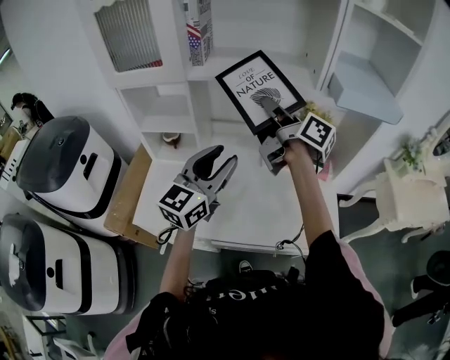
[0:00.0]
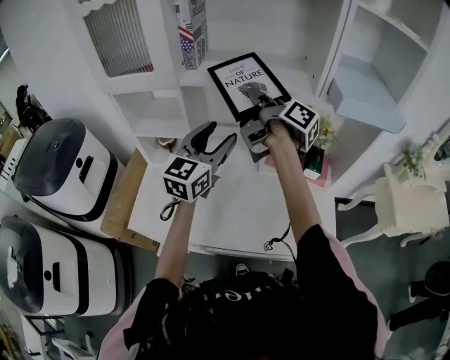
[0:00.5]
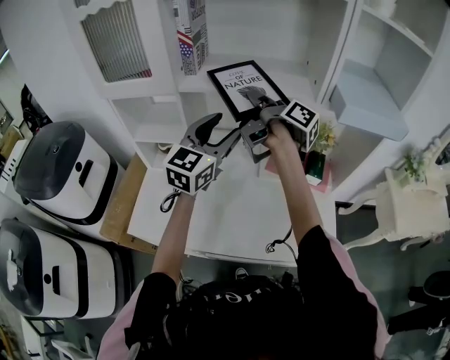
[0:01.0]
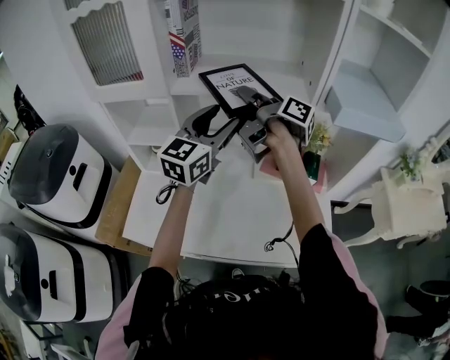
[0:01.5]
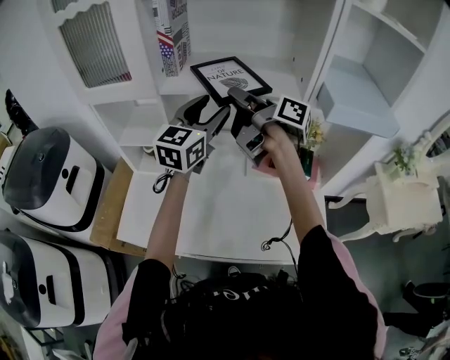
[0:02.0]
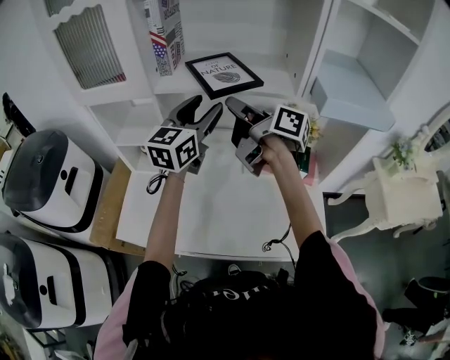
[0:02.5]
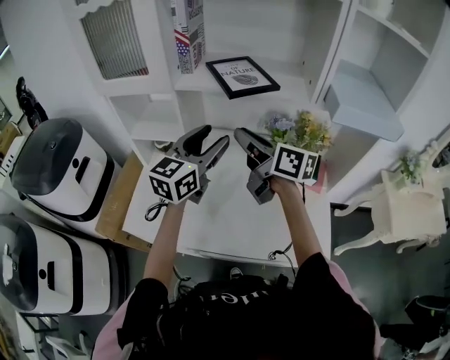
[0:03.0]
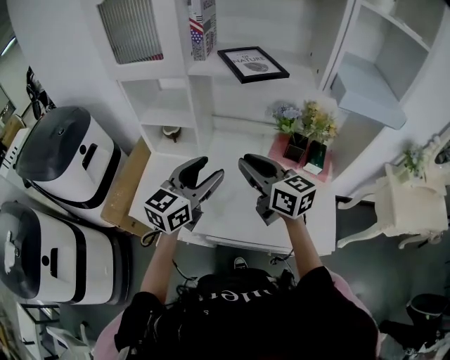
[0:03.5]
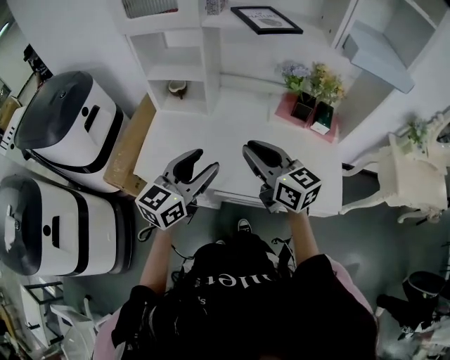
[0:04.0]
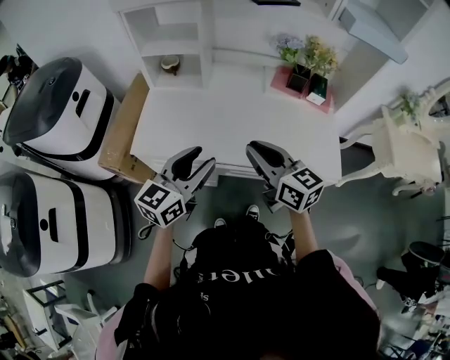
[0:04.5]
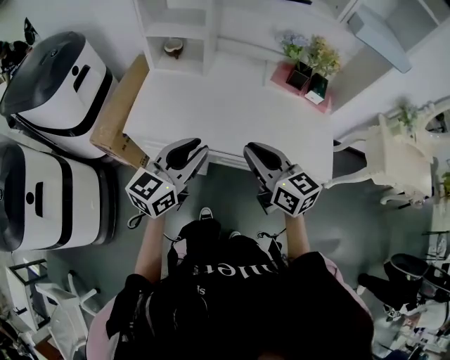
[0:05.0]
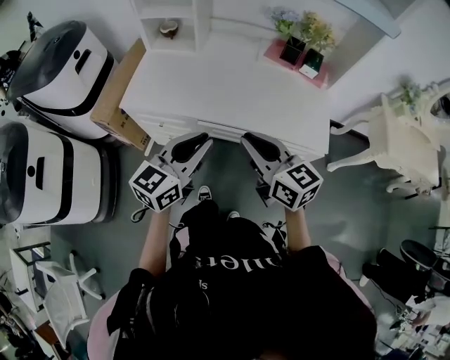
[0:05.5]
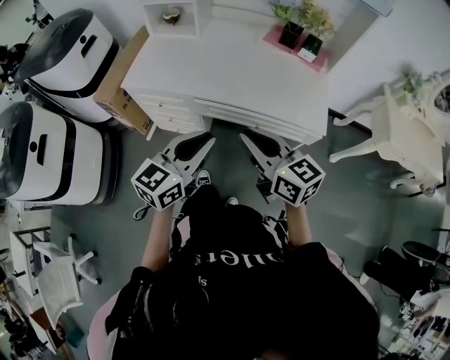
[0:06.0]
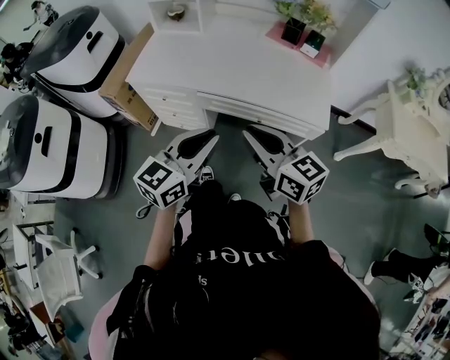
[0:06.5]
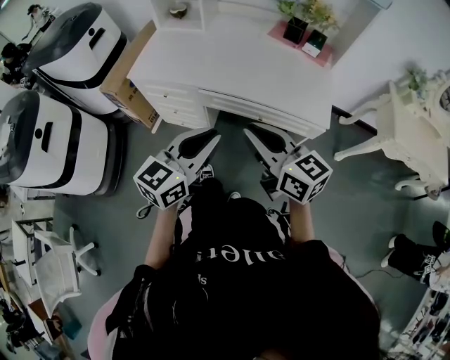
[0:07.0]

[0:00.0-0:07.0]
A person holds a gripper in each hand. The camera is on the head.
0:00.0 to 0:02.0: The left gripper shifts about 20 cm forward; the right gripper heads forward, covering some 10 cm.
0:02.0 to 0:03.5: Both grippers travel together backward and downward, about 25 cm. The right gripper rolls counterclockwise, seen from behind, by approximately 50 degrees.
0:03.5 to 0:05.0: The grippers both shift backward and downward by about 25 cm. The left gripper closes its fingers.
0:05.0 to 0:07.0: The two grippers go approximately 25 cm backward and to the right.

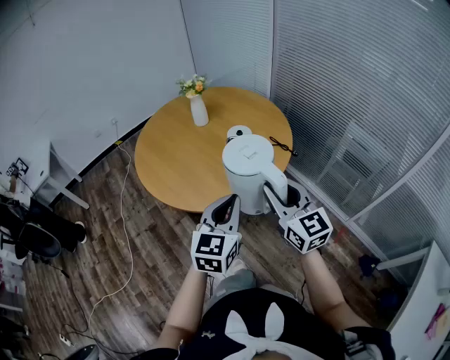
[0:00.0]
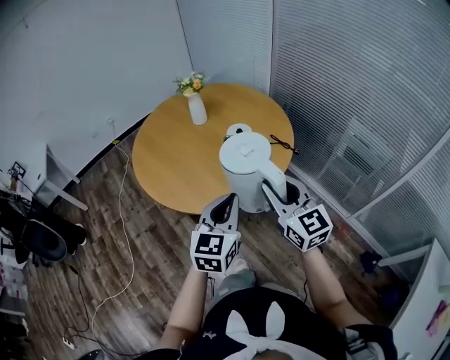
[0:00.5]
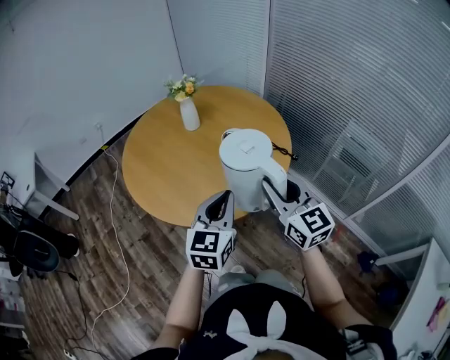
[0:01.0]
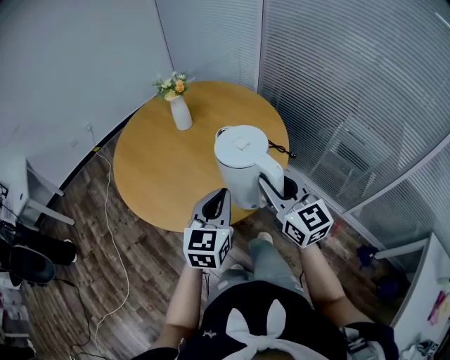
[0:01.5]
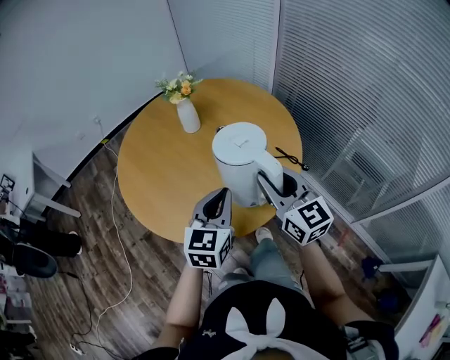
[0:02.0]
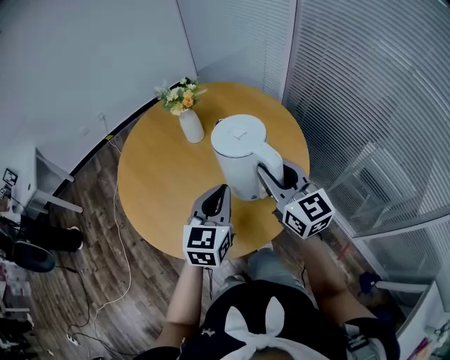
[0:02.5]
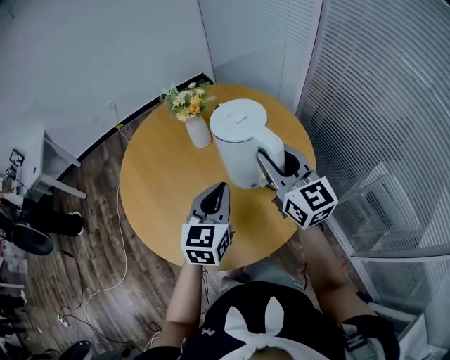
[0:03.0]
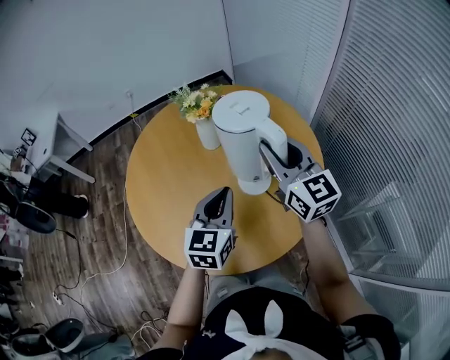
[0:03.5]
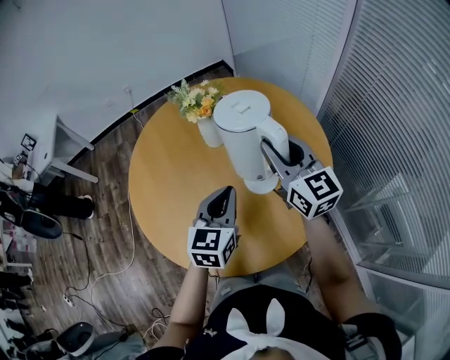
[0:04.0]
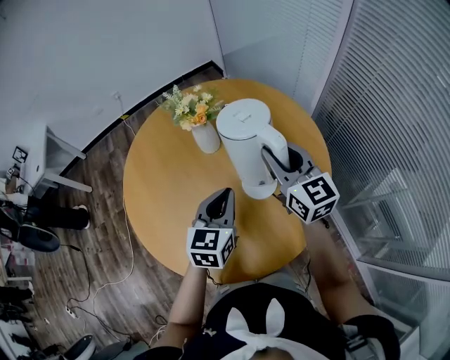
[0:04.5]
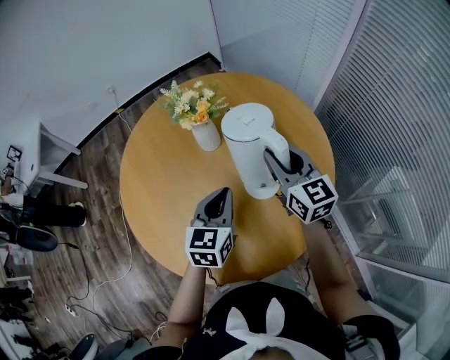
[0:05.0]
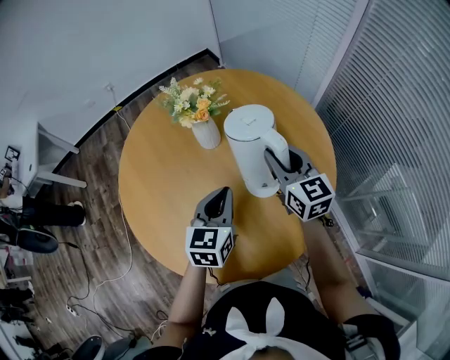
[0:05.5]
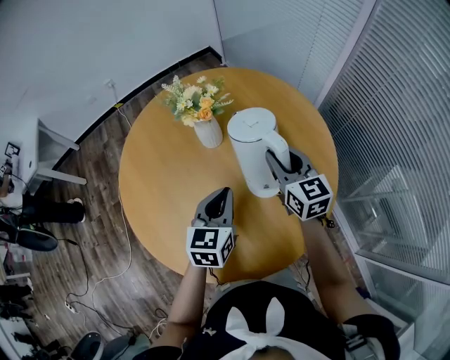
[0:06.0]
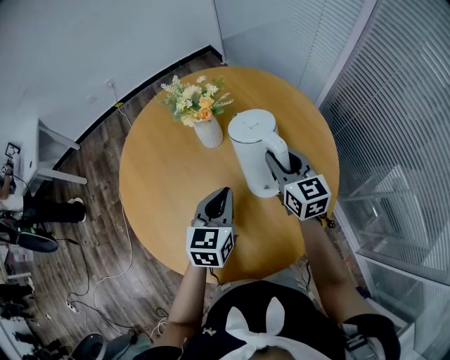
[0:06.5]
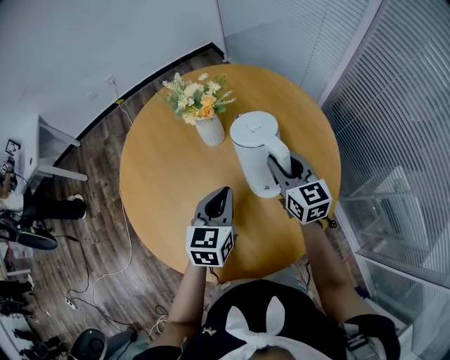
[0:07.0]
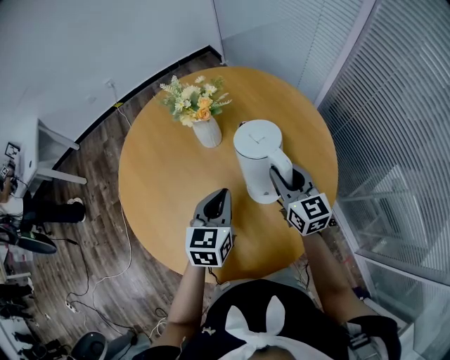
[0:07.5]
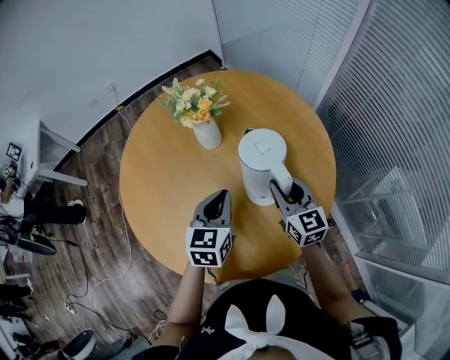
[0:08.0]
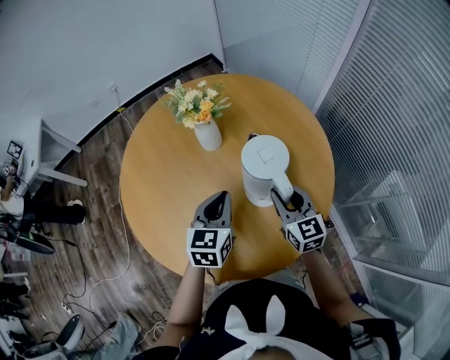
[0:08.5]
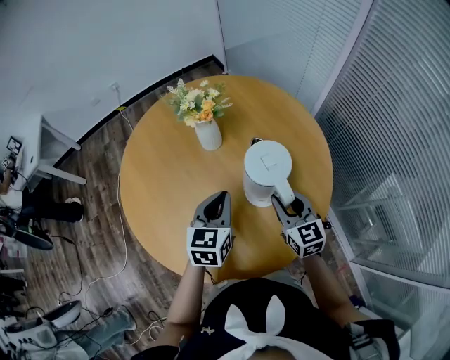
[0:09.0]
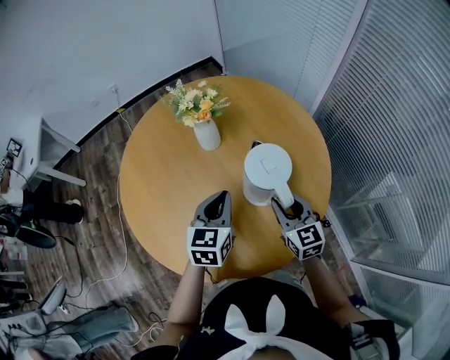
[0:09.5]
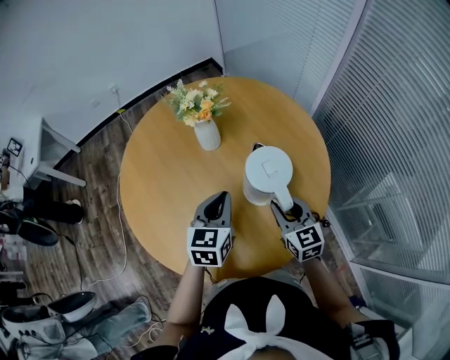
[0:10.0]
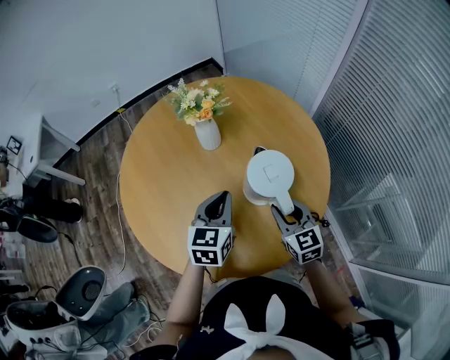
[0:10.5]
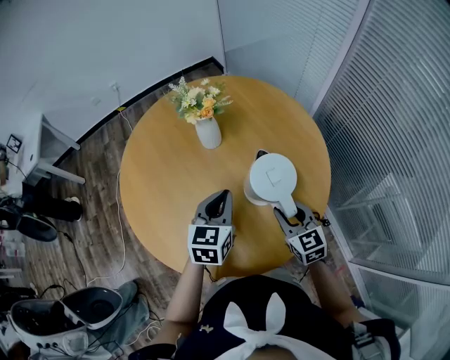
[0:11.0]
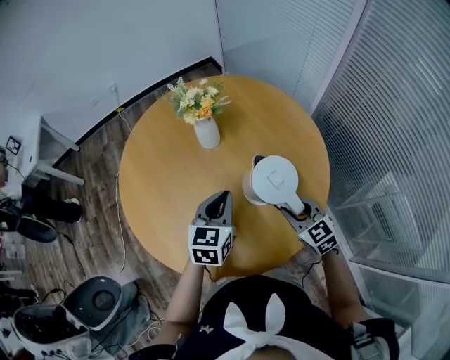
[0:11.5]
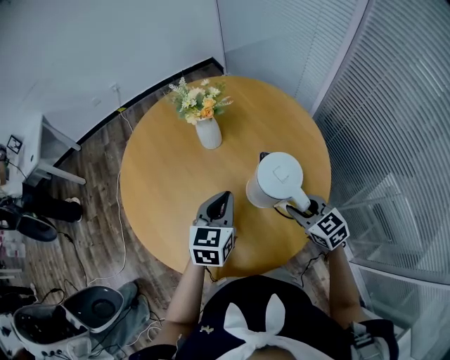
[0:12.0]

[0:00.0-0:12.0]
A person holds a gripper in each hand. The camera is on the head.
0:00.0 to 0:02.0: Both grippers move forward, some 20 cm.
0:02.0 to 0:04.0: Both grippers move forward, some 25 cm.
0:04.0 to 0:06.0: The left gripper goes roughly 5 cm downward and forward. Meanwhile the right gripper shifts approximately 10 cm downward.
0:06.0 to 0:08.0: The right gripper moves backward, approximately 5 cm.
0:08.0 to 0:10.0: The right gripper heads backward, covering approximately 5 cm.
0:10.0 to 0:12.0: The right gripper turns by some 20 degrees.

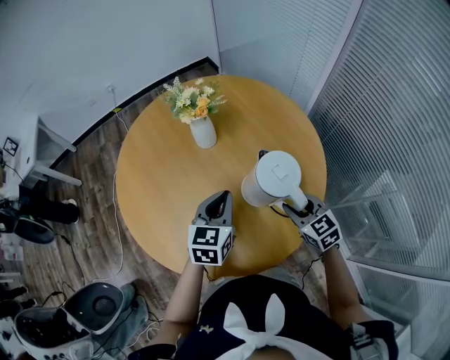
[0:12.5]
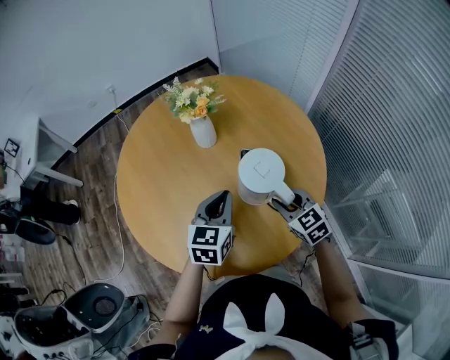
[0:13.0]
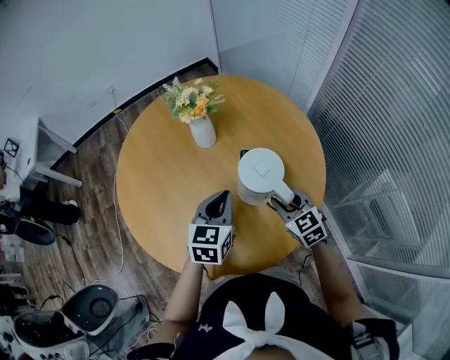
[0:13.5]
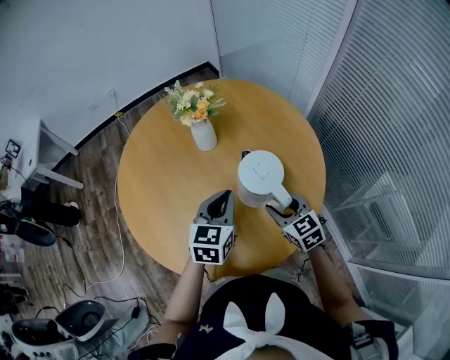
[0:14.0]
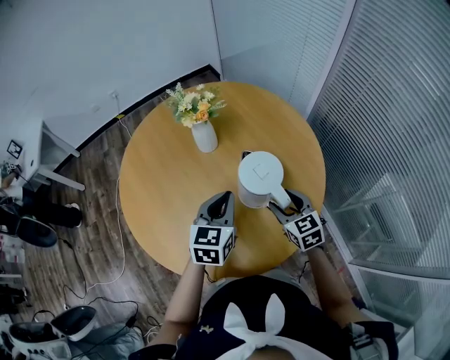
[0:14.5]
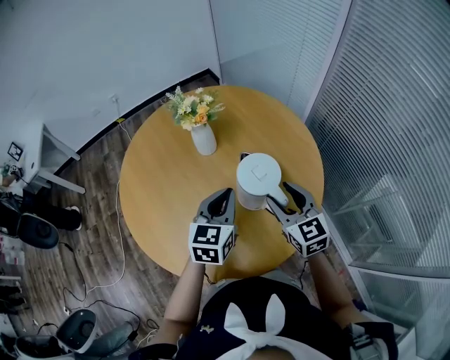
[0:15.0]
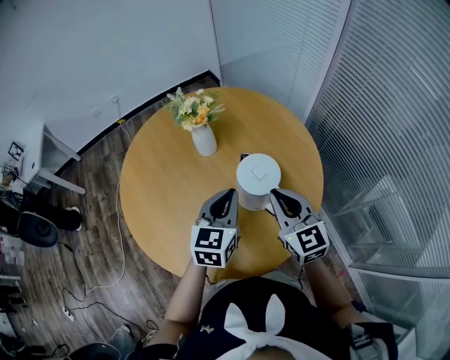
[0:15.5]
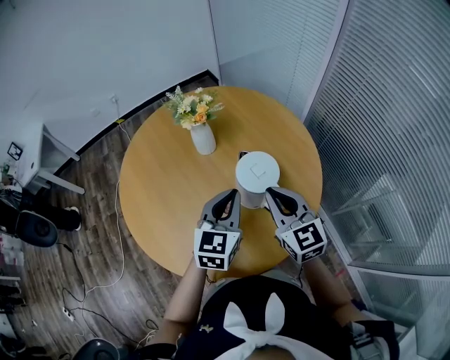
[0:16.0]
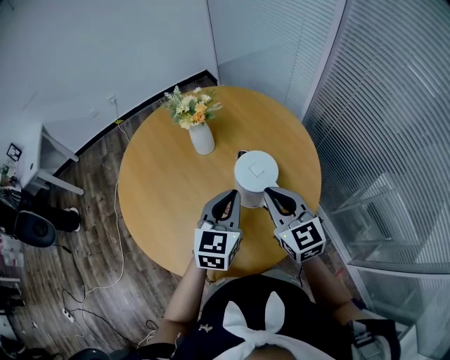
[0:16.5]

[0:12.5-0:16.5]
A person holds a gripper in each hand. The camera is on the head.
0:12.5 to 0:14.5: The right gripper opens.
0:14.5 to 0:16.5: The left gripper changes place by approximately 5 cm. Meanwhile the right gripper is displaced upward by some 15 cm, and closes.

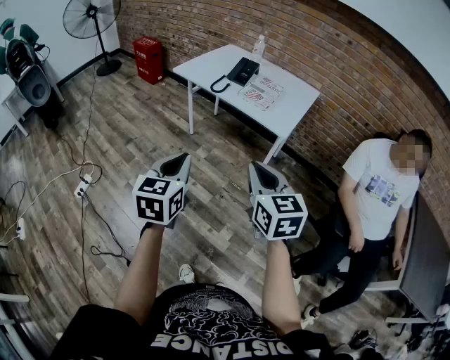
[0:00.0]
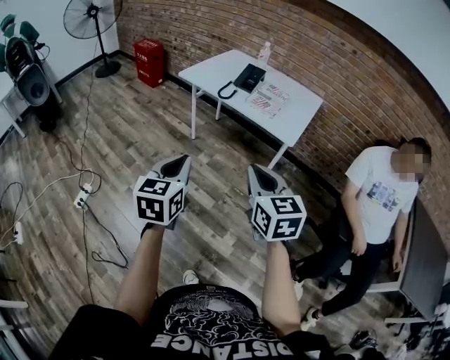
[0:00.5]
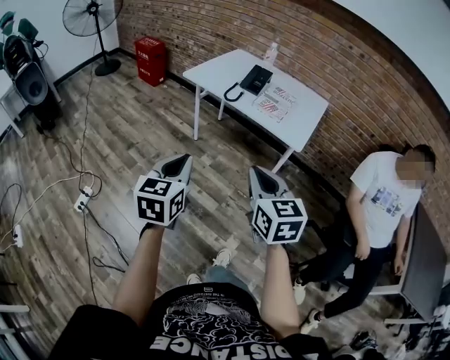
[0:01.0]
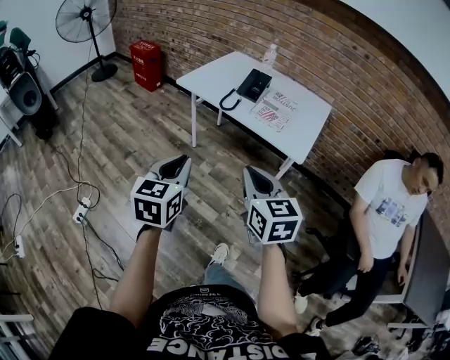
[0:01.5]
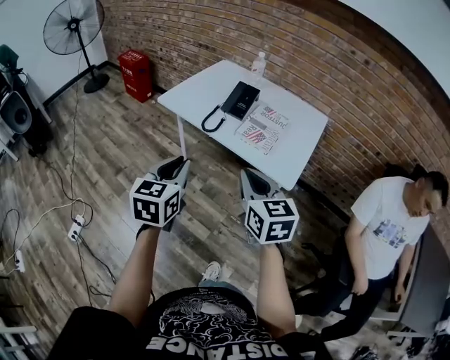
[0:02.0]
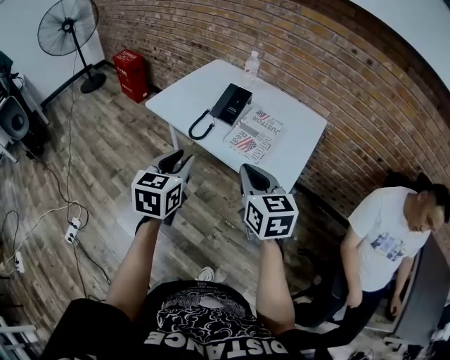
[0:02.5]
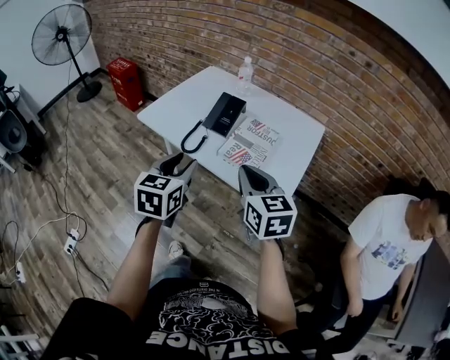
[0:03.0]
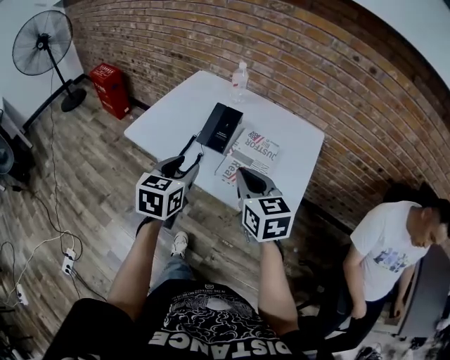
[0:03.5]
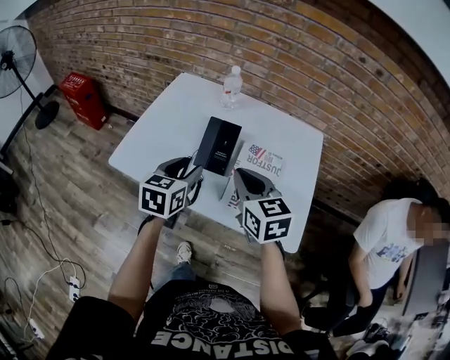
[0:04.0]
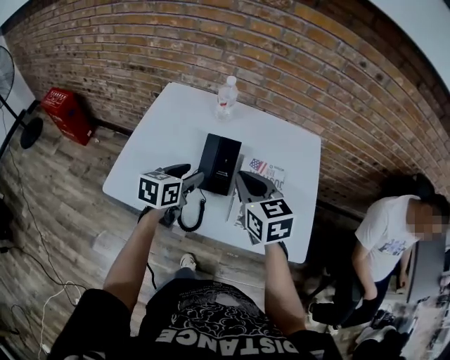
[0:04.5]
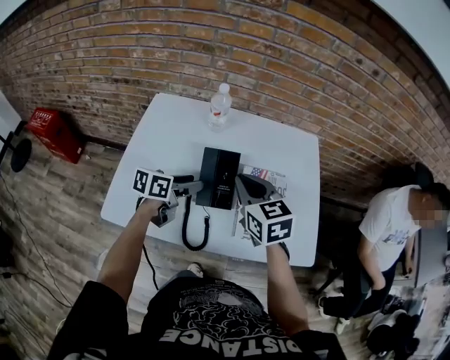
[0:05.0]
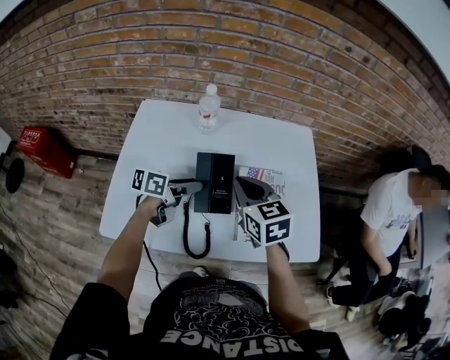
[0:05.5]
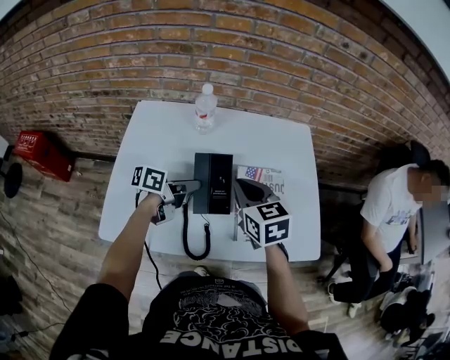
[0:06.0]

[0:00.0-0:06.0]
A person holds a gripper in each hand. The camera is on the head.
0:00.0 to 0:02.0: The grippers both shift forward by some 30 cm.
0:02.0 to 0:04.0: Both grippers travel together forward, approximately 35 cm. The left gripper swivels approximately 20 degrees, and opens its fingers.
0:04.0 to 0:06.0: The right gripper ends up roughly 15 cm from where it was. Meanwhile the left gripper shifts by roughly 20 cm, rotates some 60 degrees, and closes up.
